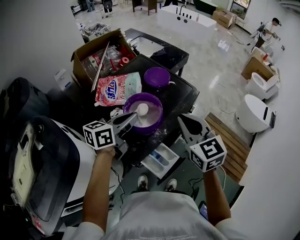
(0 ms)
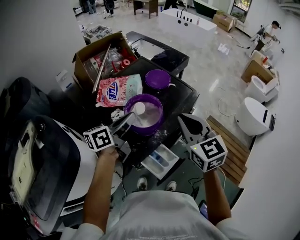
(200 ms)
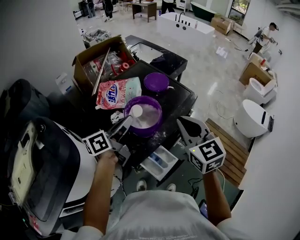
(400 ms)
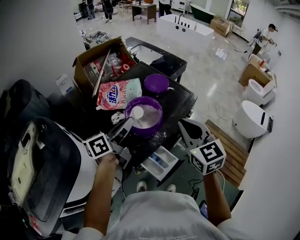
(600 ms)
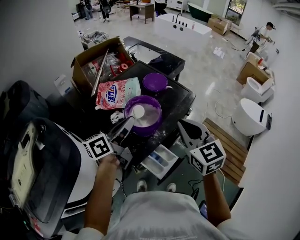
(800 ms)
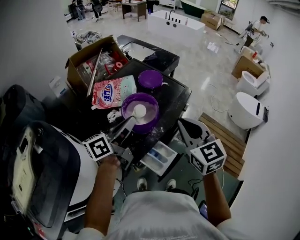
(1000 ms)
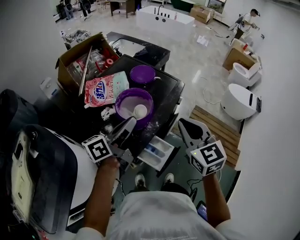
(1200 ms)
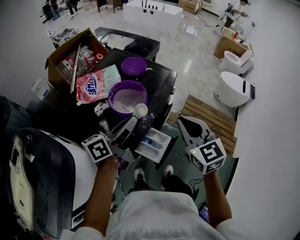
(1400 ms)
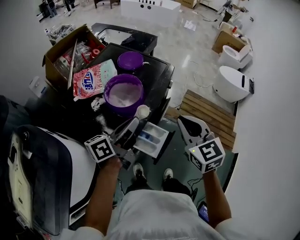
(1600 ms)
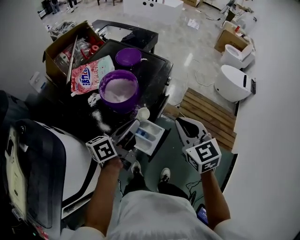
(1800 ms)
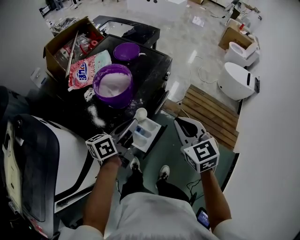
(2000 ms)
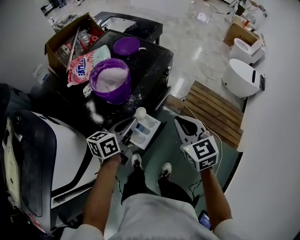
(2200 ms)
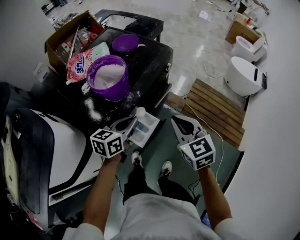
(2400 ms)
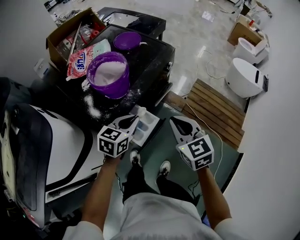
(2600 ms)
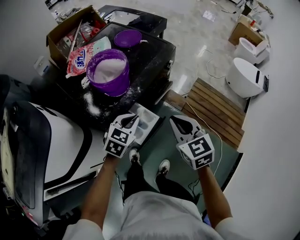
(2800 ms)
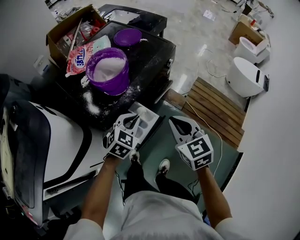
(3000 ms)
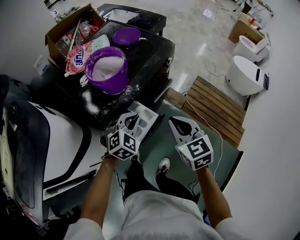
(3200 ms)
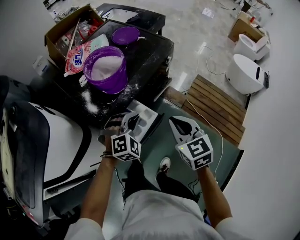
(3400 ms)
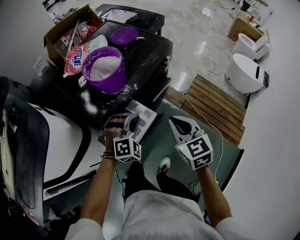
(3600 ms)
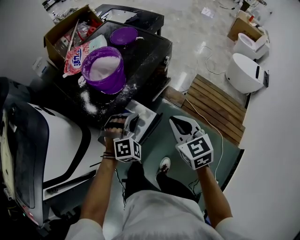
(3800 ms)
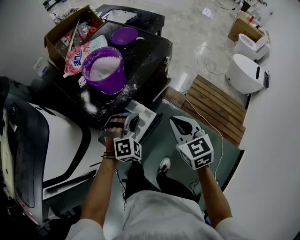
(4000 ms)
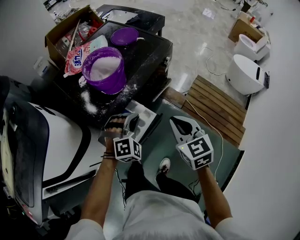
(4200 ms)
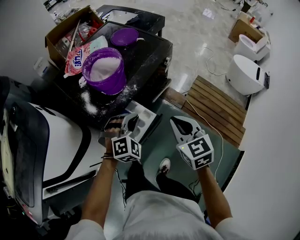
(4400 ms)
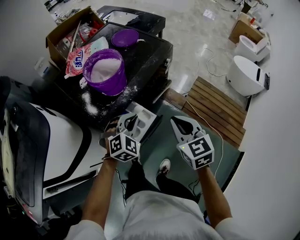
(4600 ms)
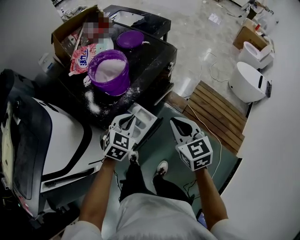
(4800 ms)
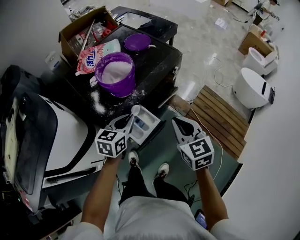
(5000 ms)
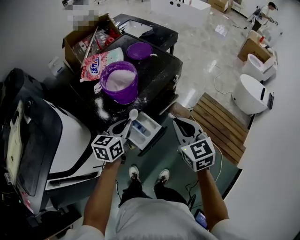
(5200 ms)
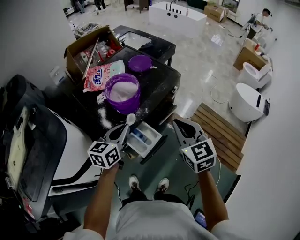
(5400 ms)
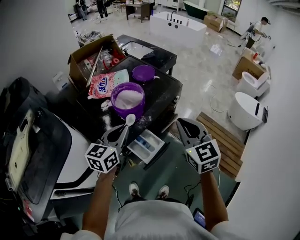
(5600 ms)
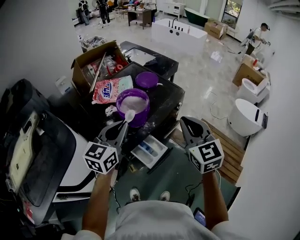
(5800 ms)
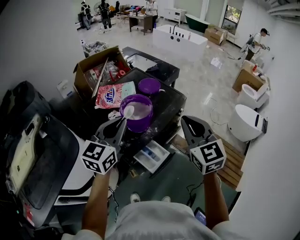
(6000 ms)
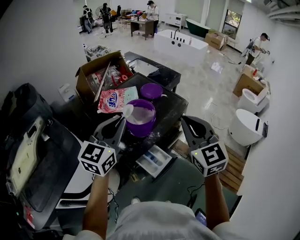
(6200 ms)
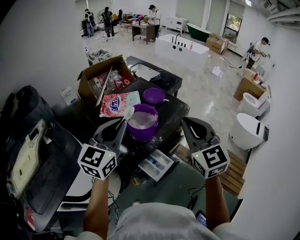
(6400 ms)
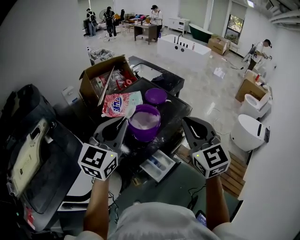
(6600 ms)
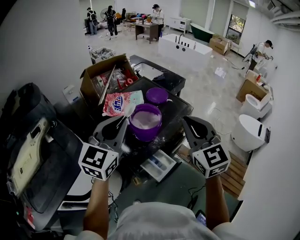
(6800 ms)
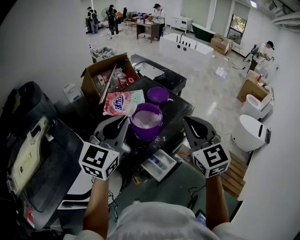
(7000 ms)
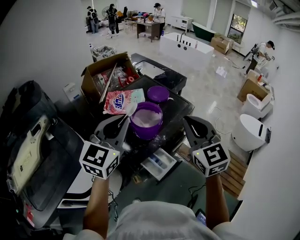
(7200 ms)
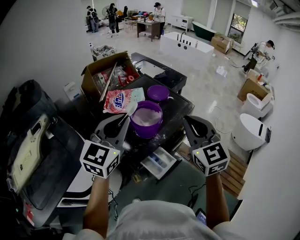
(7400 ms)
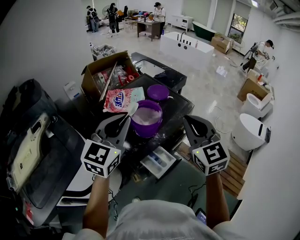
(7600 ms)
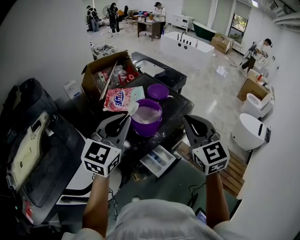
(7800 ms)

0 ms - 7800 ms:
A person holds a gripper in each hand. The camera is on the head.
0 ms - 1600 ms: Both grippers move backward and to the right, about 10 cm. The left gripper turns by roughly 30 degrees.
1600 ms - 3200 ms: The grippers both shift downward and to the right by some 15 cm. The left gripper twists approximately 80 degrees clockwise, seen from behind.
4600 ms - 6200 ms: The left gripper travels upward and to the left by about 35 cm, and angles its fingers upward, by some 40 degrees. Meanwhile the right gripper travels upward by approximately 25 cm, and changes its angle by approximately 30 degrees.
6200 ms - 7800 ms: The grippers stay close to where they were, moving slightly.

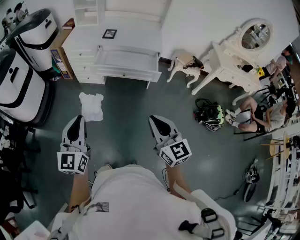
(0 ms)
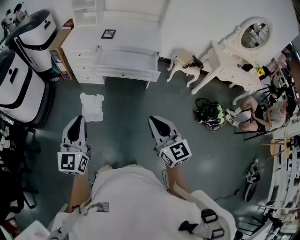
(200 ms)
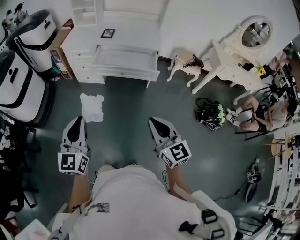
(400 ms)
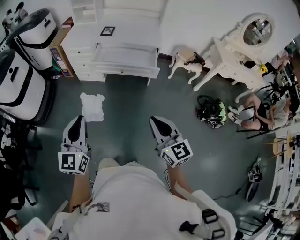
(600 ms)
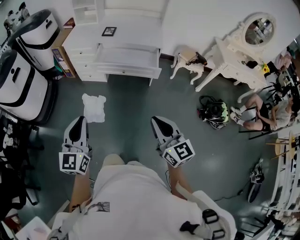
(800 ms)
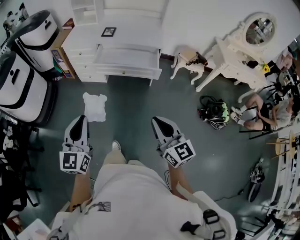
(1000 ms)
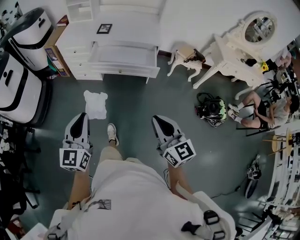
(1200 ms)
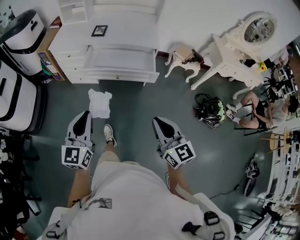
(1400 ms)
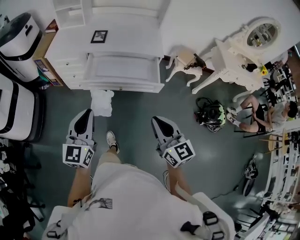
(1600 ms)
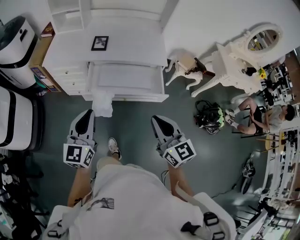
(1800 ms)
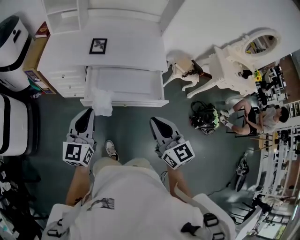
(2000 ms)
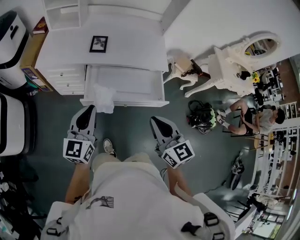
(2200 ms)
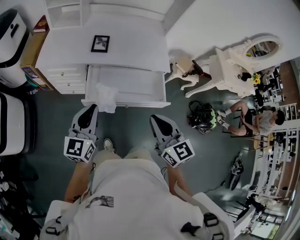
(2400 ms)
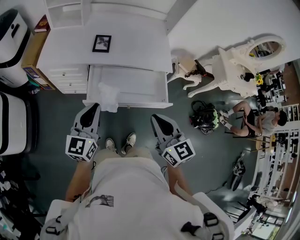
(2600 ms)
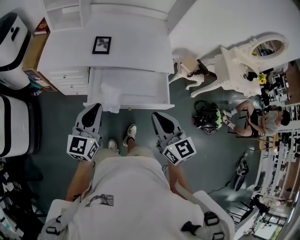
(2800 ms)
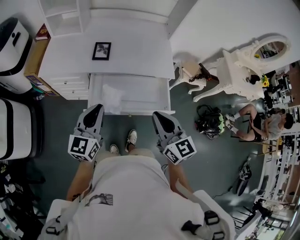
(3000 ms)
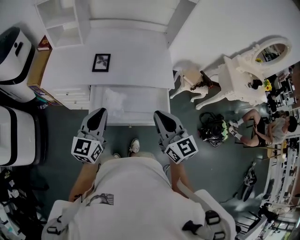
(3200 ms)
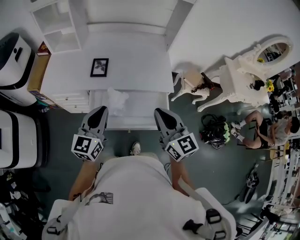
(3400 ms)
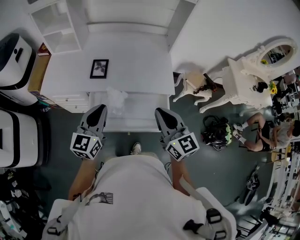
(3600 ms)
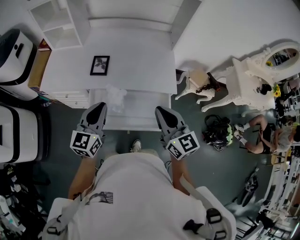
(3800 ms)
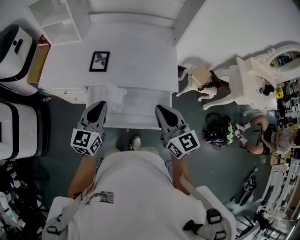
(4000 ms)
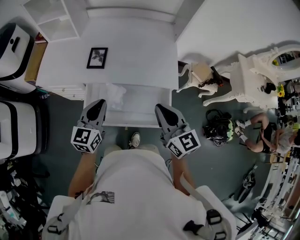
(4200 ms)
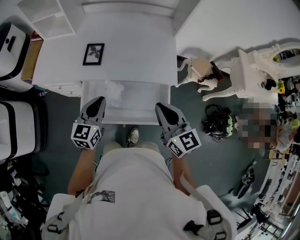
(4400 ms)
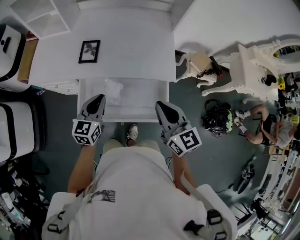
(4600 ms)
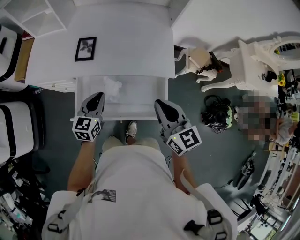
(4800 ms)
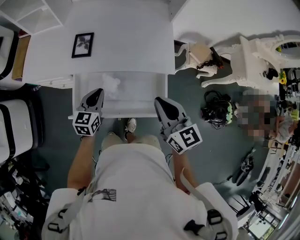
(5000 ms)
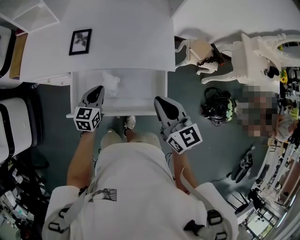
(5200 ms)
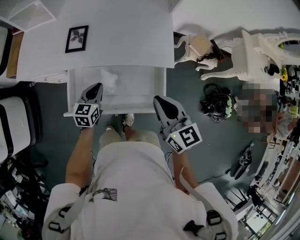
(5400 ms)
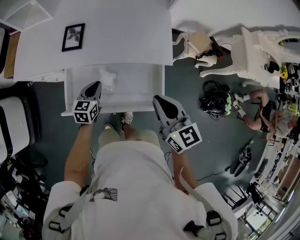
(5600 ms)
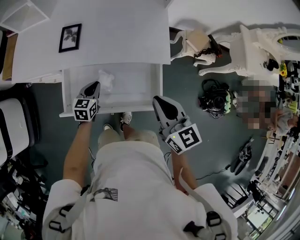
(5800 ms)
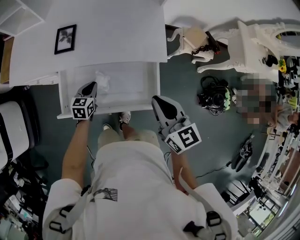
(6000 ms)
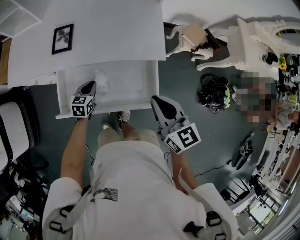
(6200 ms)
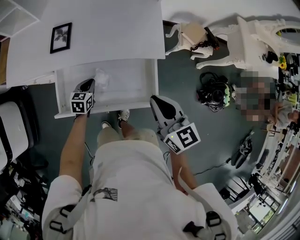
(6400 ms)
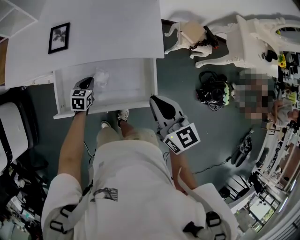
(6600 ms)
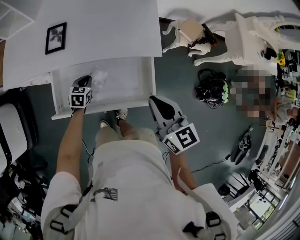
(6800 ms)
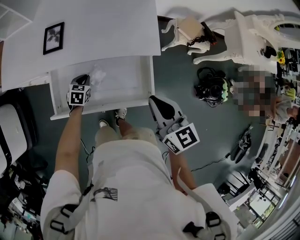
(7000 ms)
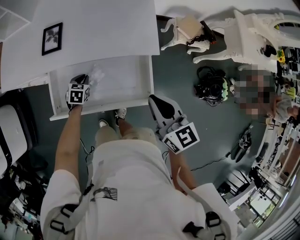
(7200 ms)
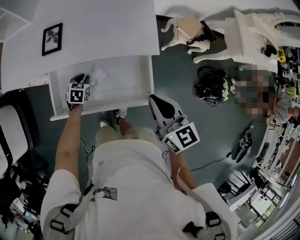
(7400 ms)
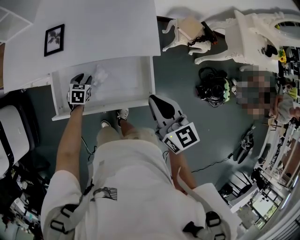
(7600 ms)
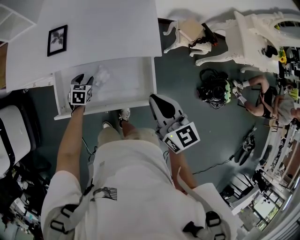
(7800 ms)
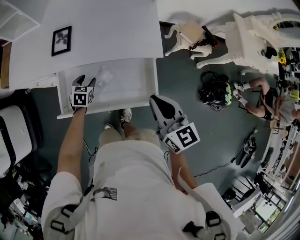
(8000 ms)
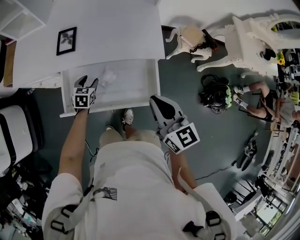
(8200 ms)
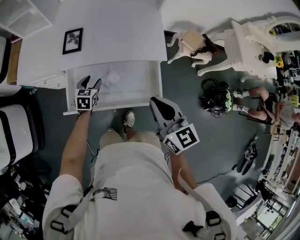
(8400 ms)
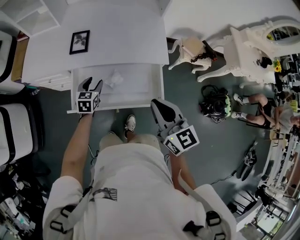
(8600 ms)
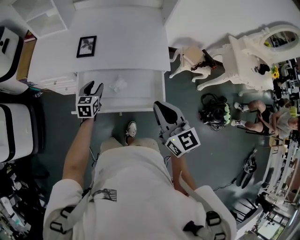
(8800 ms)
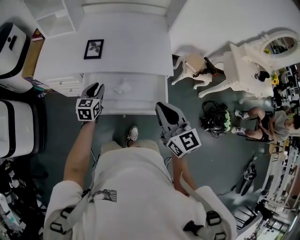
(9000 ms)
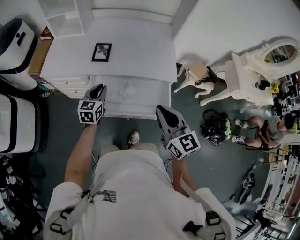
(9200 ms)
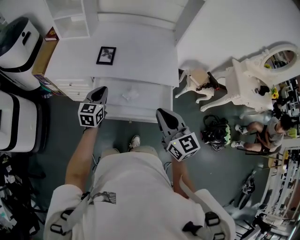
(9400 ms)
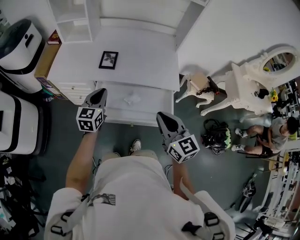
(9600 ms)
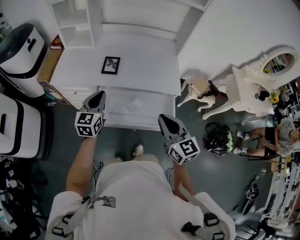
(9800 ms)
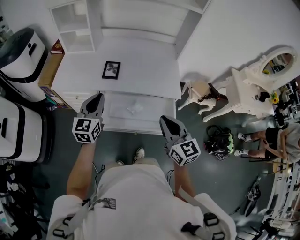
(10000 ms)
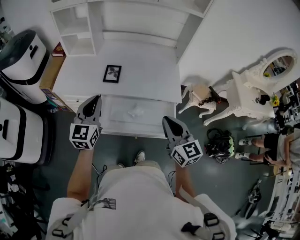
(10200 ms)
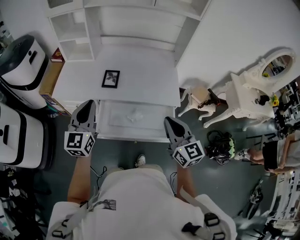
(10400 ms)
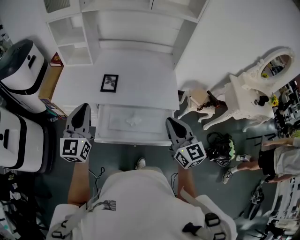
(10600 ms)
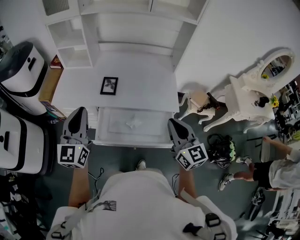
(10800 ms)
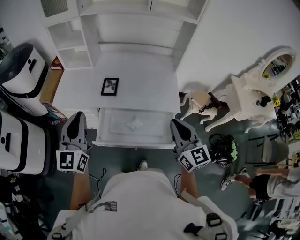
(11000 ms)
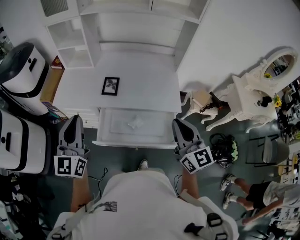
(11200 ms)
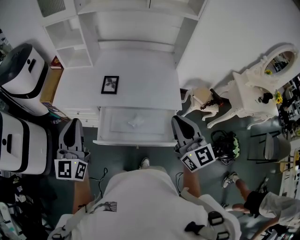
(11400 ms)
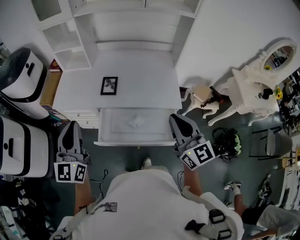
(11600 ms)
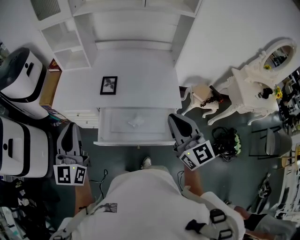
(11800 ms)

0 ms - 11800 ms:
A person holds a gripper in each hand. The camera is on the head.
0 ms - 1400 ms: The left gripper is displaced forward, to the right and downward by about 15 cm; the right gripper travels forward and to the right by roughly 10 cm.
1400 ms - 3000 ms: The grippers both shift forward by some 40 cm.
3000 ms - 4400 ms: The left gripper heads forward, to the right and downward, covering approximately 20 cm; the right gripper moves forward and to the right, roughly 20 cm.
4400 ms - 6000 ms: The left gripper heads downward, covering roughly 25 cm, and swivels some 30 degrees. Meanwhile the right gripper shifts approximately 10 cm downward and to the right.
6000 ms - 7400 ms: The left gripper is displaced downward by about 5 cm, and rotates approximately 20 degrees.
7400 ms - 8800 ms: The left gripper goes about 20 cm upward, turns by some 30 degrees, and opens; the right gripper shifts approximately 15 cm upward, to the left and backward.
8800 ms - 10400 ms: The left gripper shifts about 30 cm upward, tilts its fingers roughly 30 degrees upward, and closes its fingers; the right gripper heads upward, covering approximately 5 cm.
10400 ms - 11800 ms: The two grippers go approximately 5 cm upward.

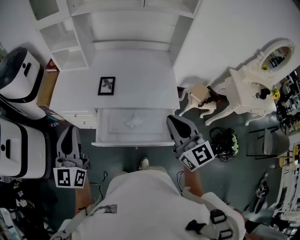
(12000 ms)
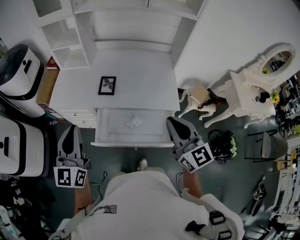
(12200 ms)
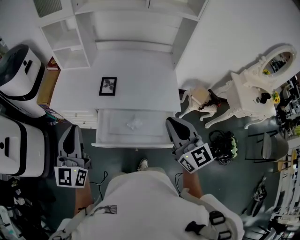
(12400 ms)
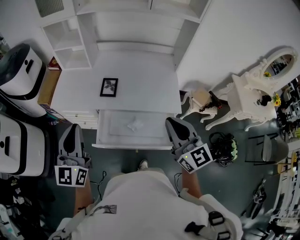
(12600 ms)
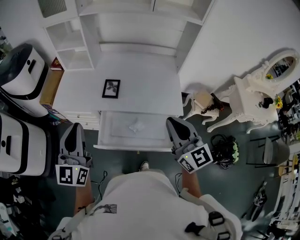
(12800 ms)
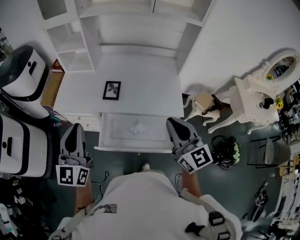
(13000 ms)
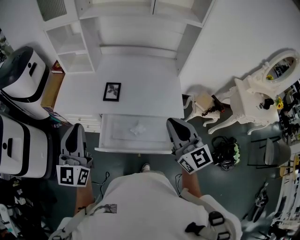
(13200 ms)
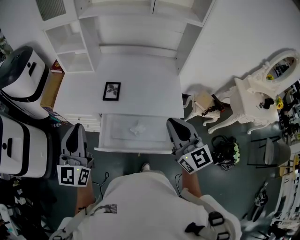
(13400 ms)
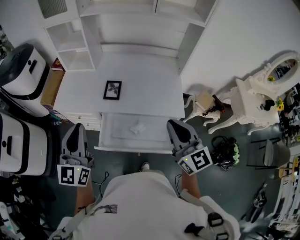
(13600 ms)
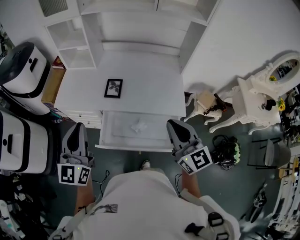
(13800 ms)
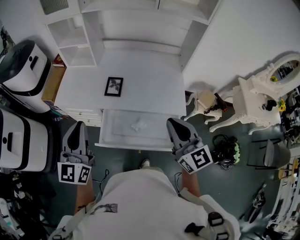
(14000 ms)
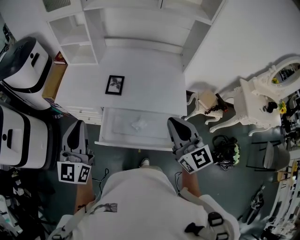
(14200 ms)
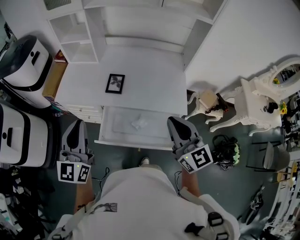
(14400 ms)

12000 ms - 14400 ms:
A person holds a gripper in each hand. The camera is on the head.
12000 ms - 14400 ms: There are only small adjustments of the grippers.

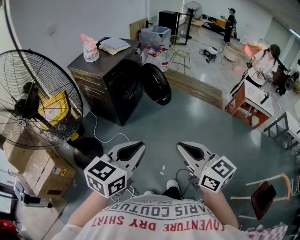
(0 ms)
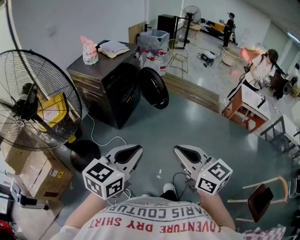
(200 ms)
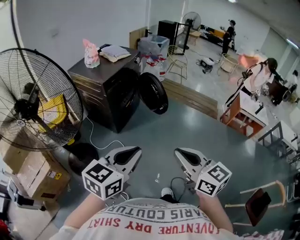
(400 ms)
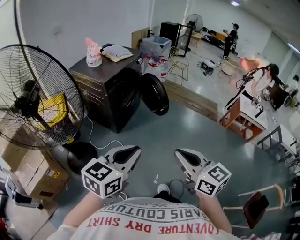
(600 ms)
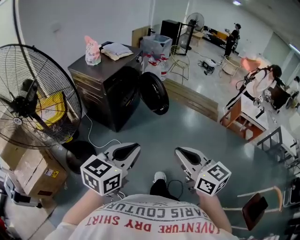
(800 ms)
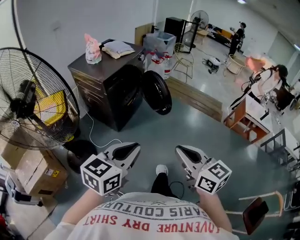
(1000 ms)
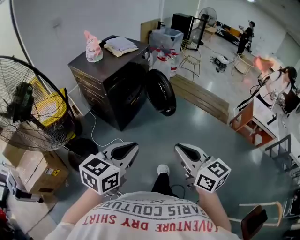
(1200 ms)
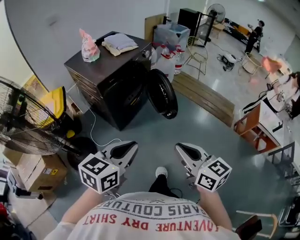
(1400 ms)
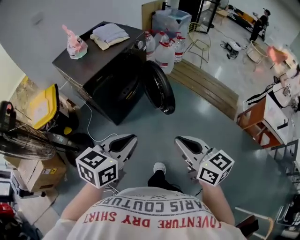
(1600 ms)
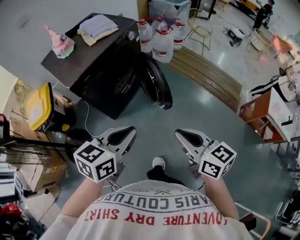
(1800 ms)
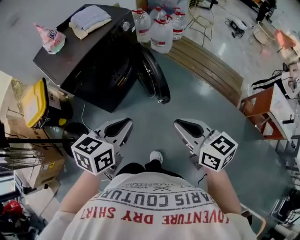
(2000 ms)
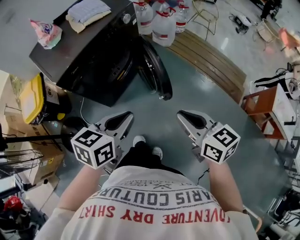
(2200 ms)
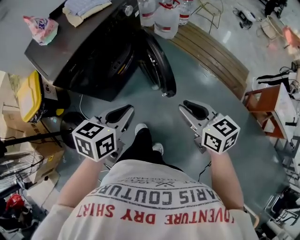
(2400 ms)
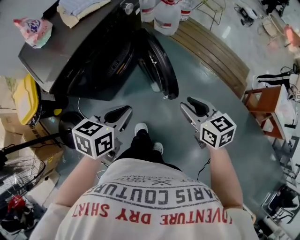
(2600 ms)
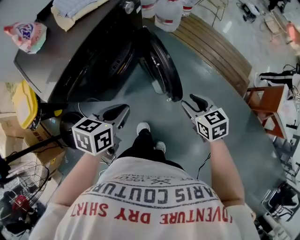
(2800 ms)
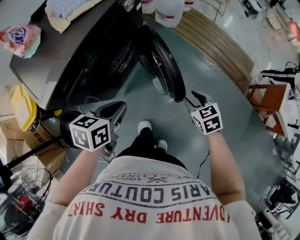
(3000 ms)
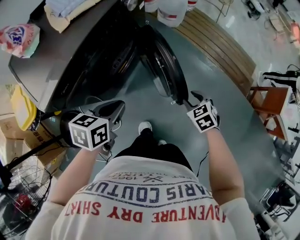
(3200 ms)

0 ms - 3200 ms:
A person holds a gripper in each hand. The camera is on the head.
0 ms - 1600 ms: The grippers both shift forward by about 30 cm.
1600 ms - 3200 ms: The left gripper shifts some 40 cm forward and downward, and turns by some 30 degrees, while the right gripper heads downward and forward, covering about 50 cm, points its fingers roughly 50 degrees further downward, and opens its fingers.
